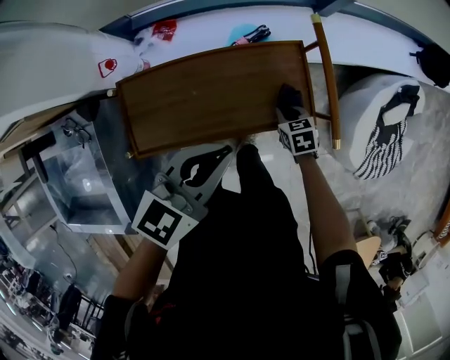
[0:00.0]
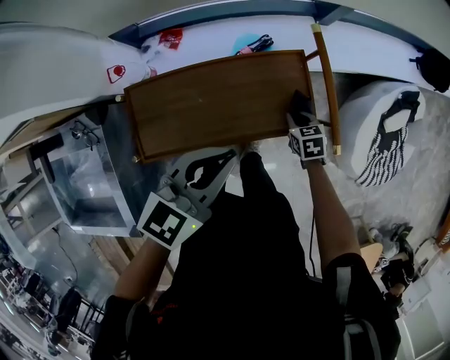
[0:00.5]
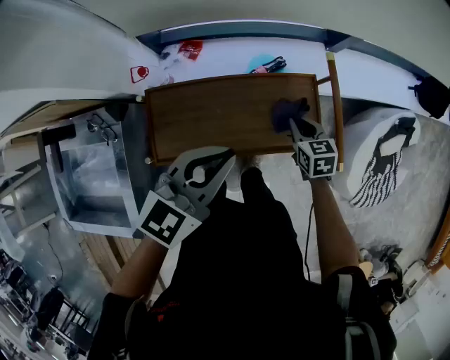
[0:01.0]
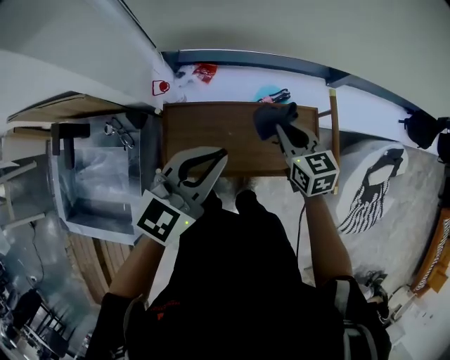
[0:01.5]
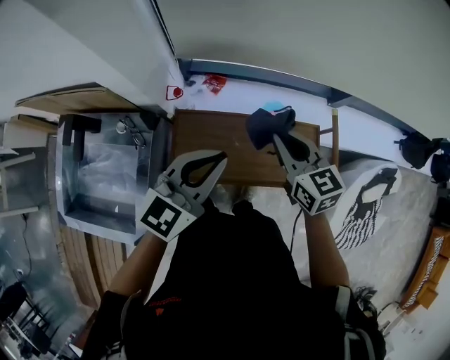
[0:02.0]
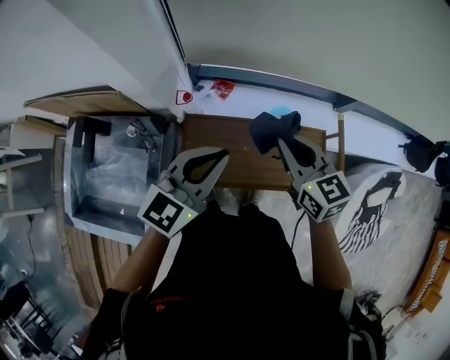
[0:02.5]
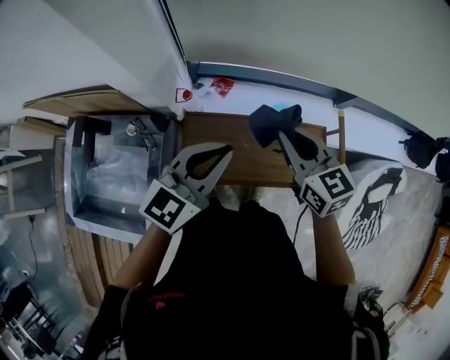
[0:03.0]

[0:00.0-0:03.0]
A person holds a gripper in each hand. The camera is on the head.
0:00.0 to 0:01.5: The right gripper moves upward and to the left, roughly 30 cm, and swivels roughly 30 degrees. Meanwhile the left gripper heads to the left and upward, covering approximately 15 cm.
0:01.5 to 0:03.0: The left gripper heads to the left, covering about 5 cm. Meanwhile the right gripper travels upward and to the left by approximately 15 cm.

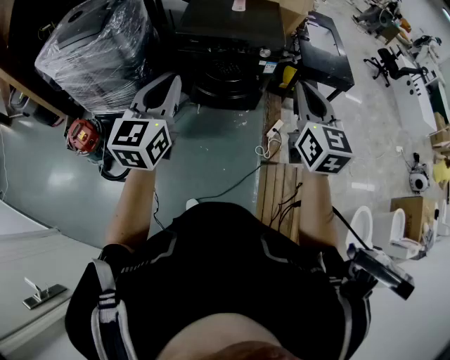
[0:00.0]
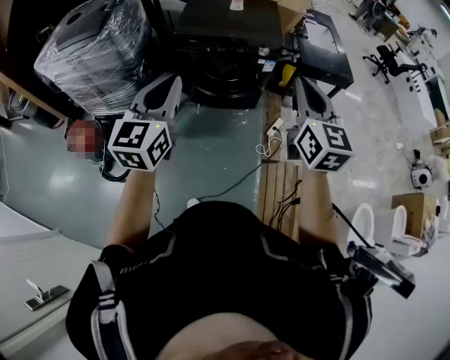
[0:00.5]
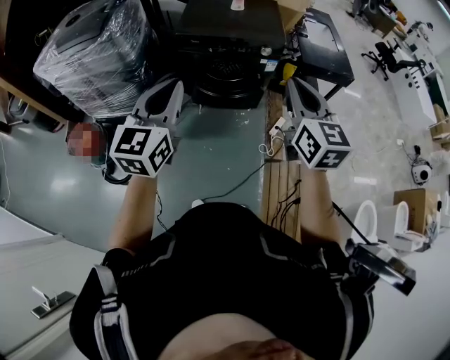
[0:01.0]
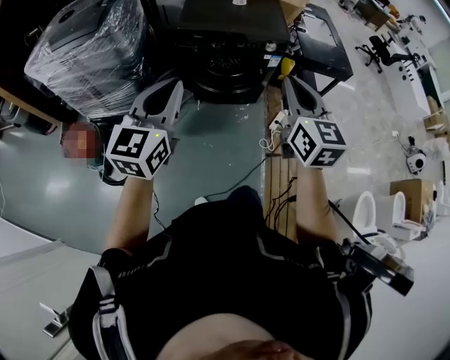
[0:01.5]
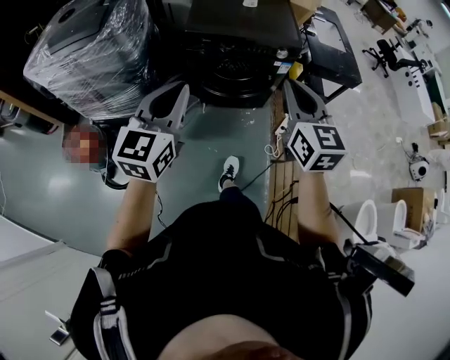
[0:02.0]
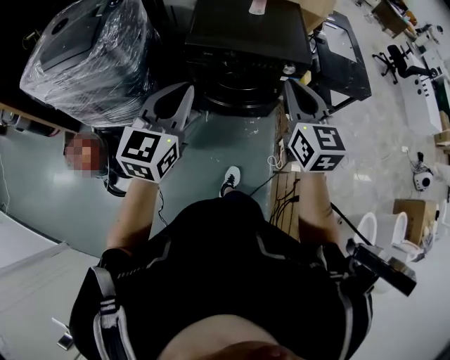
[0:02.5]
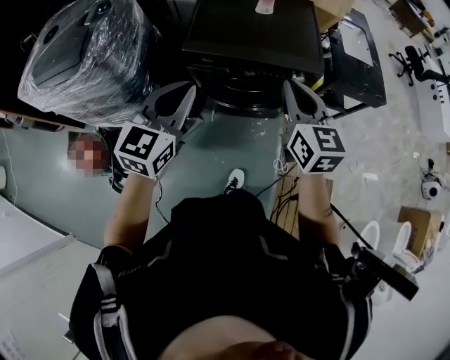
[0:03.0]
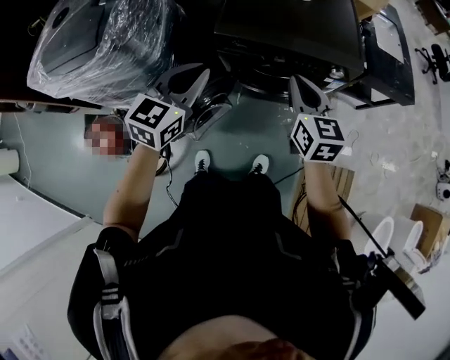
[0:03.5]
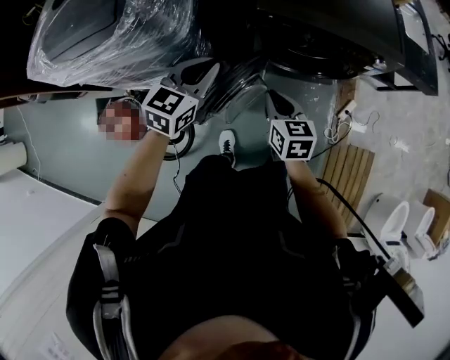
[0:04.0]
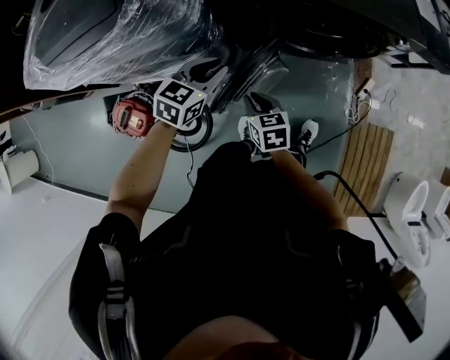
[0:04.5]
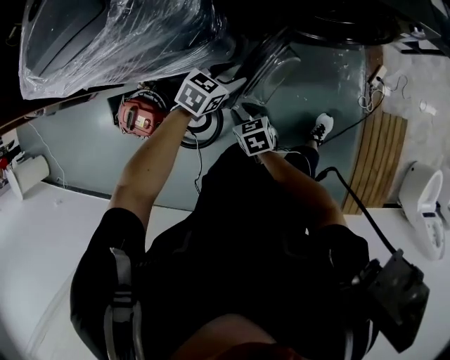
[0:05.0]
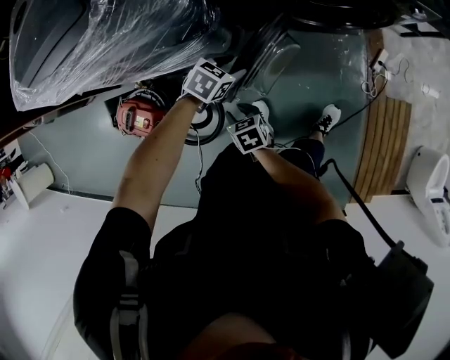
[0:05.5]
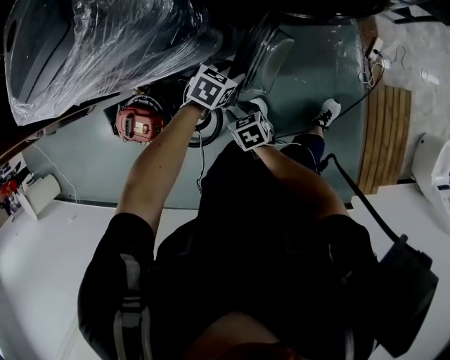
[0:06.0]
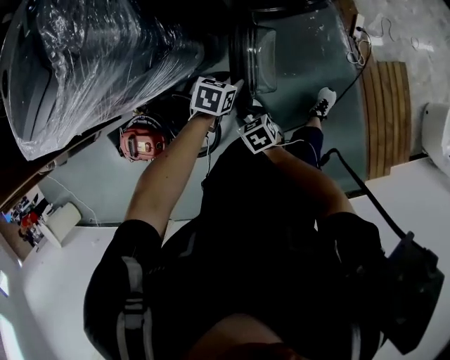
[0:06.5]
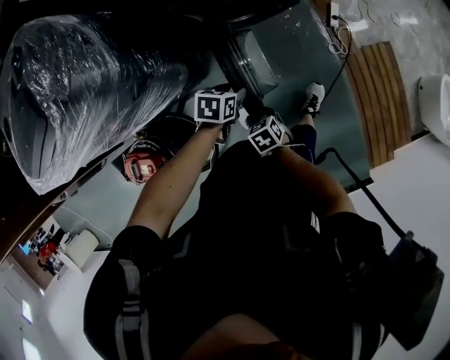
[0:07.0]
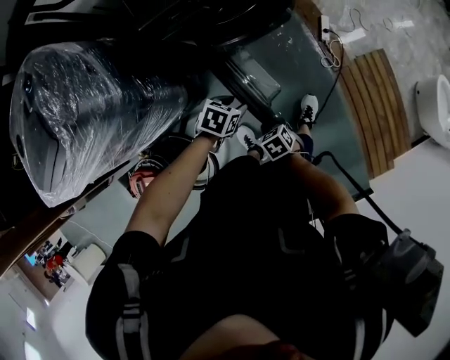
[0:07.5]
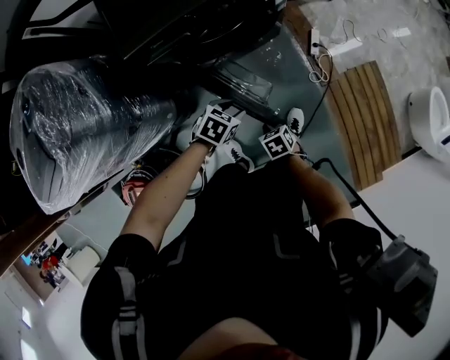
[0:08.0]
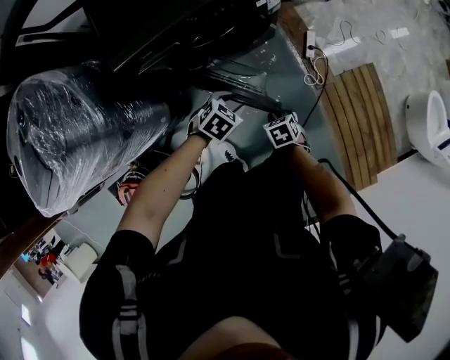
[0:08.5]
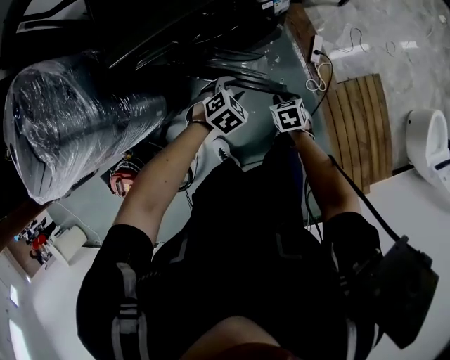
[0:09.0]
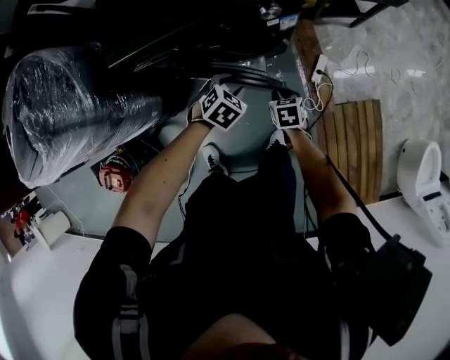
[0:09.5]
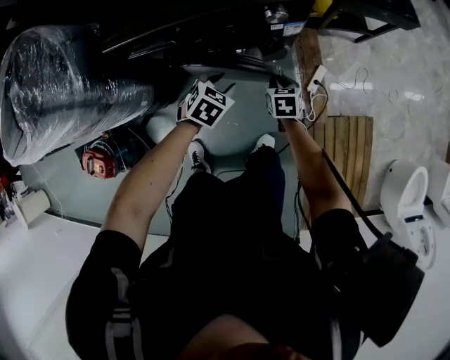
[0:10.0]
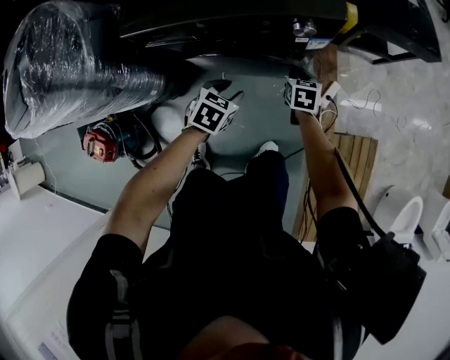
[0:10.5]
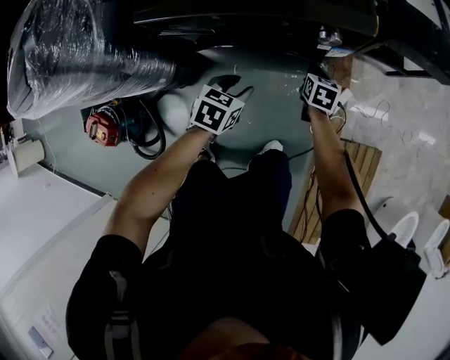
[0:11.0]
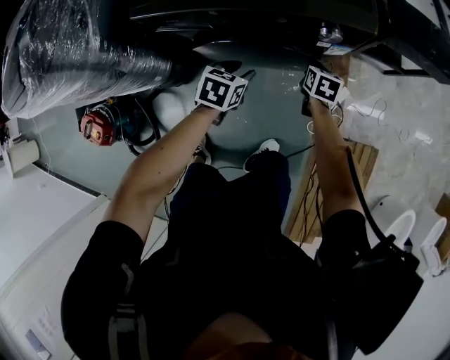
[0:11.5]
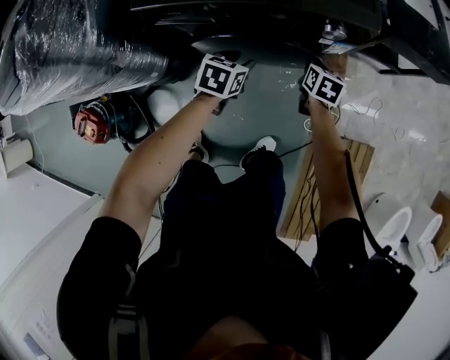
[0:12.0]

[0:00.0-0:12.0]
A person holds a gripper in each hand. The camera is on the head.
0:00.0 to 0:02.0: The grippers both shift to the left and forward by some 15 cm.
0:02.0 to 0:04.0: The right gripper travels downward, to the left and forward by some 40 cm, and swivels approximately 30 degrees. Meanwhile the left gripper is displaced forward, downward and to the left by some 40 cm, and changes its angle by approximately 20 degrees.
0:04.0 to 0:06.0: The left gripper is displaced downward by roughly 30 cm, tilts its fingers about 30 degrees downward, and opens. Meanwhile the right gripper goes about 35 cm downward, to the left and backward, changes its angle by roughly 20 degrees, and opens.
0:06.0 to 0:08.0: Both grippers move to the right, about 35 cm. The right gripper swivels roughly 20 degrees, and closes up.
0:08.0 to 0:10.0: The left gripper moves forward, about 20 cm, and changes its angle by roughly 20 degrees. The right gripper travels forward by some 30 cm.
0:10.0 to 0:12.0: The left gripper heads to the left and forward, covering about 10 cm, and swivels approximately 30 degrees; the right gripper heads forward, covering about 10 cm.

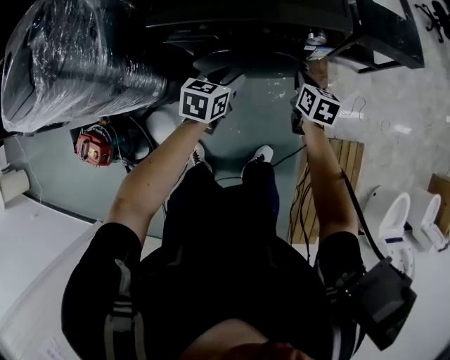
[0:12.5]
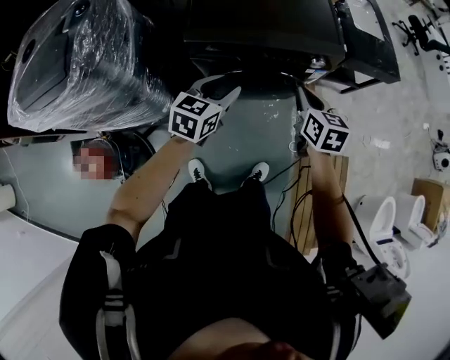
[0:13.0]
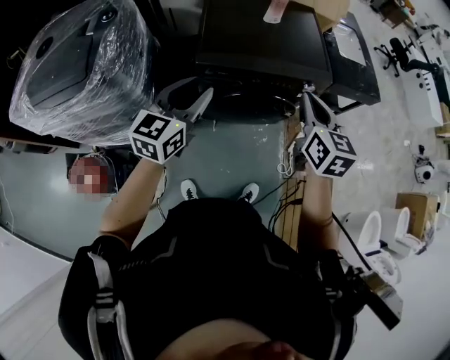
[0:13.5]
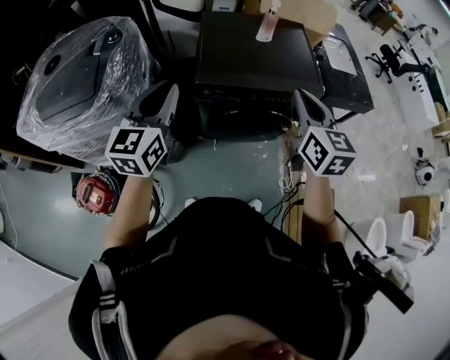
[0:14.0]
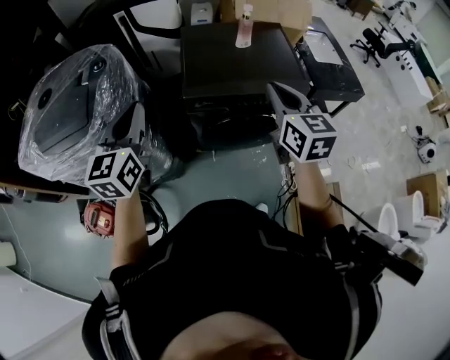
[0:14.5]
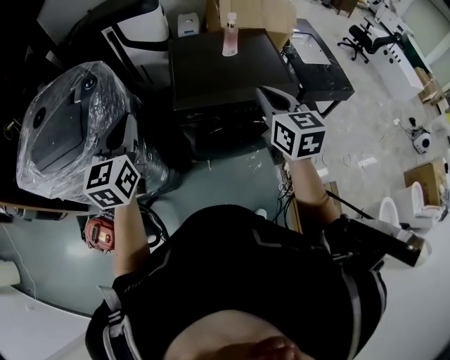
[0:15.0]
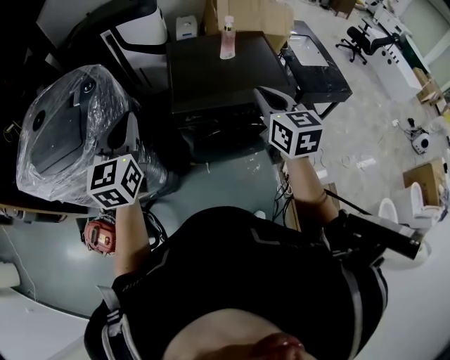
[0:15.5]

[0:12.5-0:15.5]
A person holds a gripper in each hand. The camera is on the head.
0:12.5 to 0:14.0: The left gripper moves upward and to the left, about 50 cm, angles its fingers upward, by some 40 degrees, and closes up. Meanwhile the right gripper is displaced upward by approximately 40 cm, and swivels approximately 40 degrees.
0:14.0 to 0:15.5: There are only small adjustments of the grippers.

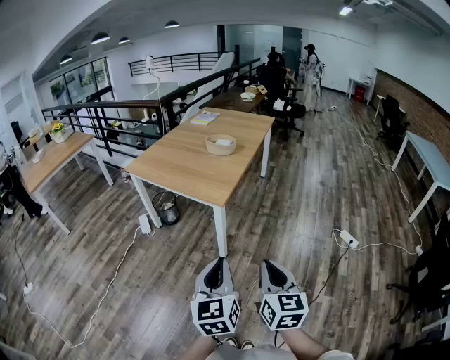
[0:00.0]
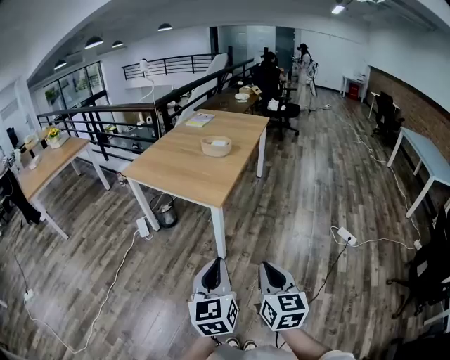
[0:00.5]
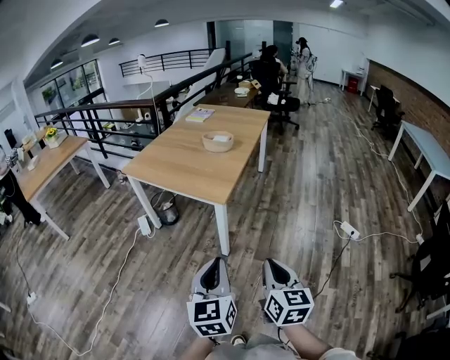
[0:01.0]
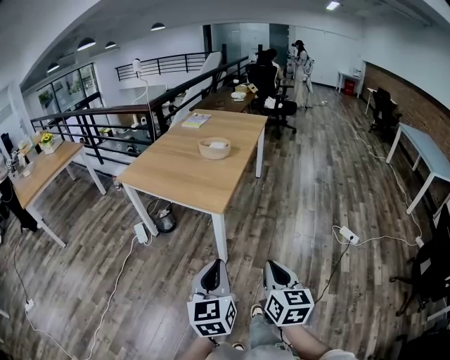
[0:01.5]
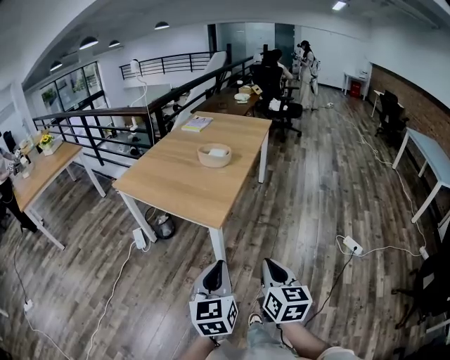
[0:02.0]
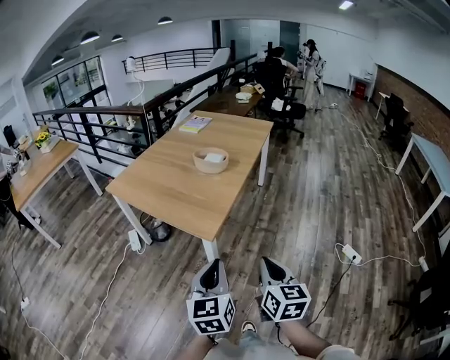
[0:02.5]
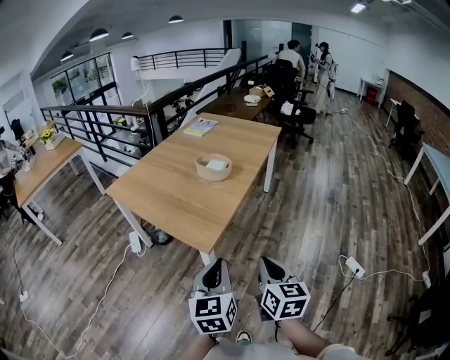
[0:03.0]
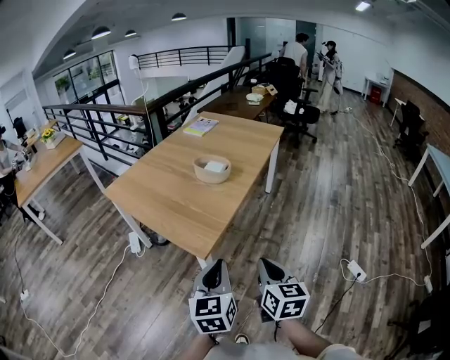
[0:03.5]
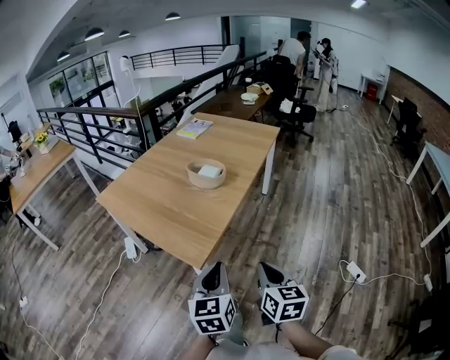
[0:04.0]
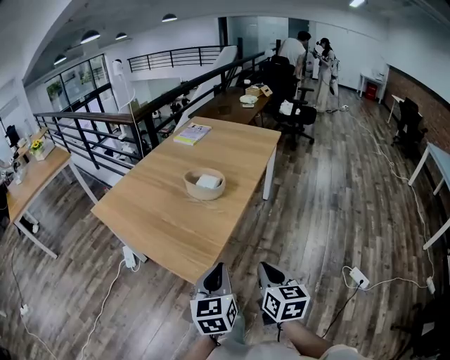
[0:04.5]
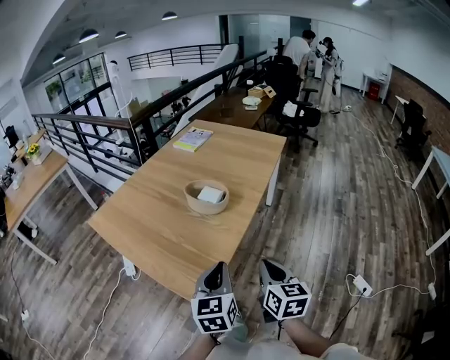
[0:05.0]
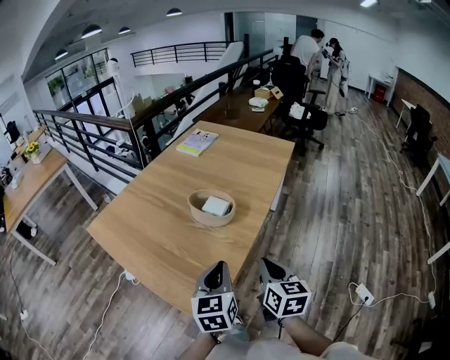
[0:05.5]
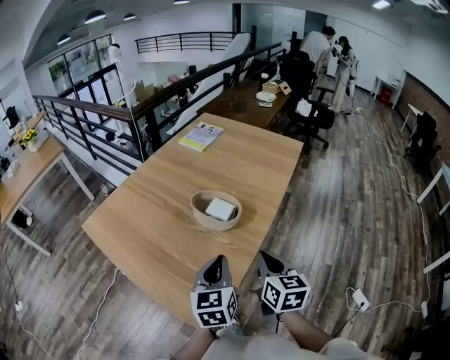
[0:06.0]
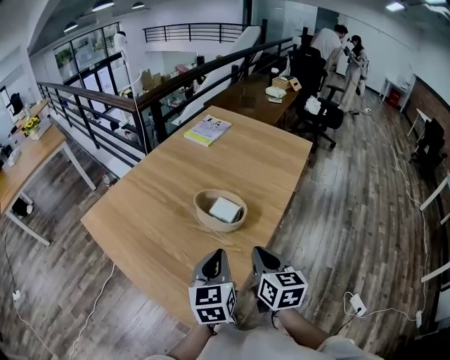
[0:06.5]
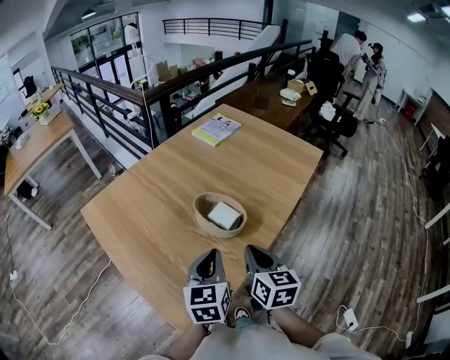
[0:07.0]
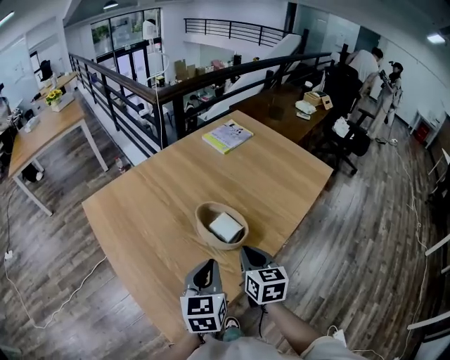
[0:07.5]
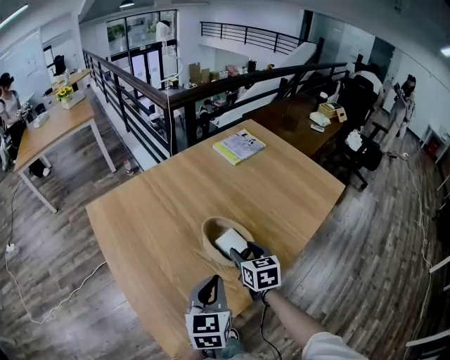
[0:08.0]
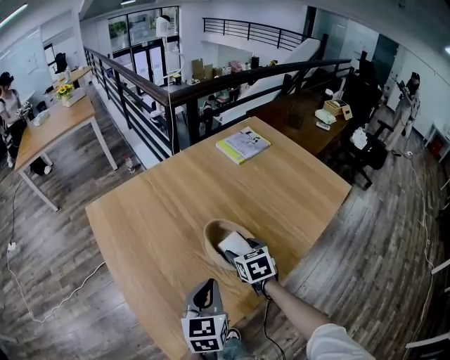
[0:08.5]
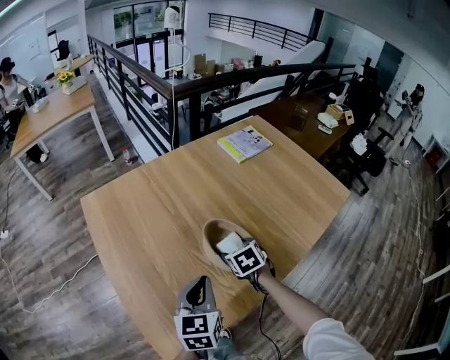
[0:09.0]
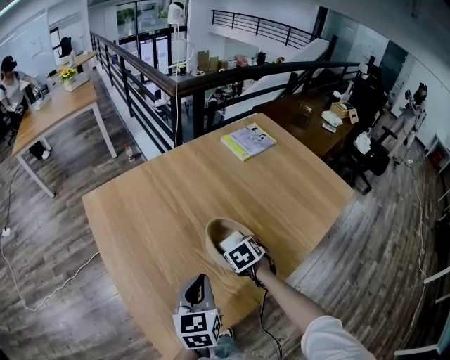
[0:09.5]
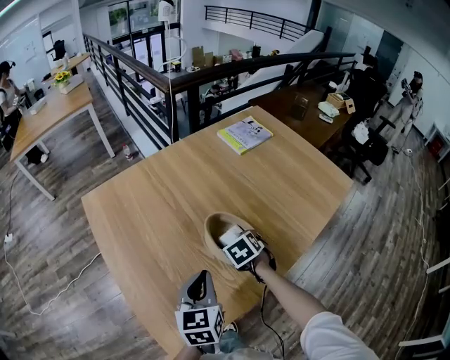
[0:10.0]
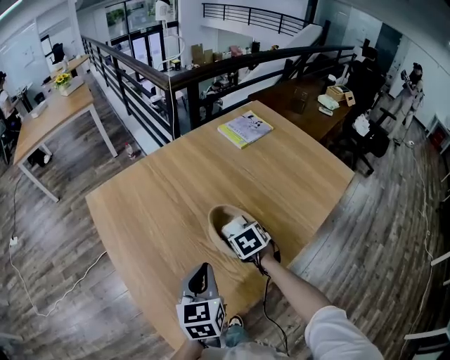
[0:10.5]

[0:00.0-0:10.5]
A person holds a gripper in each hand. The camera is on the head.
0:00.0 to 0:02.0: Both grippers move forward, about 15 cm.
0:02.0 to 0:04.0: The two grippers go roughly 25 cm forward and to the right.
0:04.0 to 0:06.5: Both grippers move forward, about 35 cm.
0:06.5 to 0:08.5: The right gripper travels forward and downward by some 25 cm, rotates some 40 degrees, and opens its fingers. Meanwhile the left gripper shifts roughly 5 cm forward.
